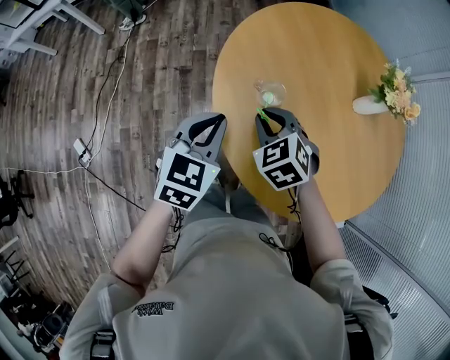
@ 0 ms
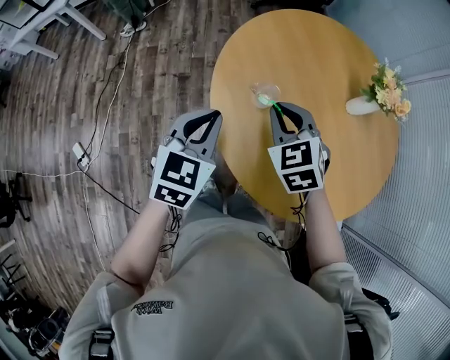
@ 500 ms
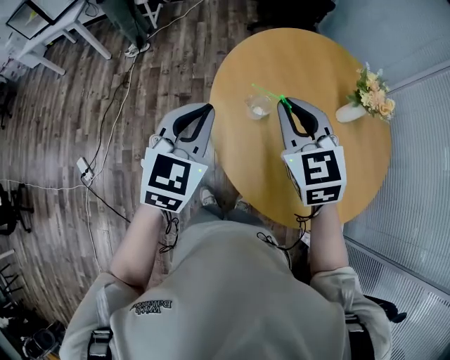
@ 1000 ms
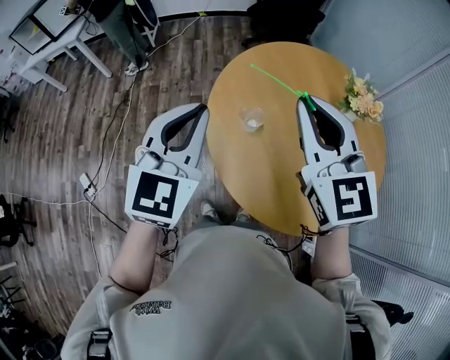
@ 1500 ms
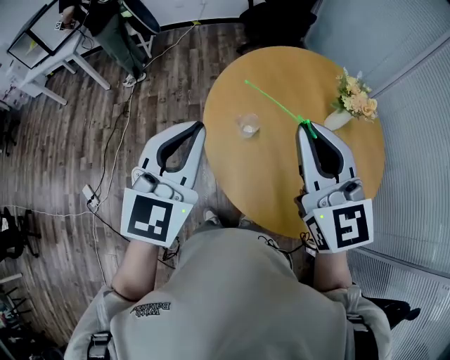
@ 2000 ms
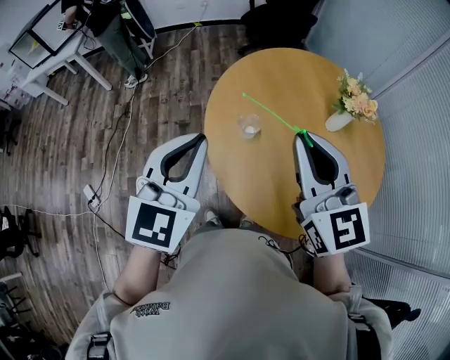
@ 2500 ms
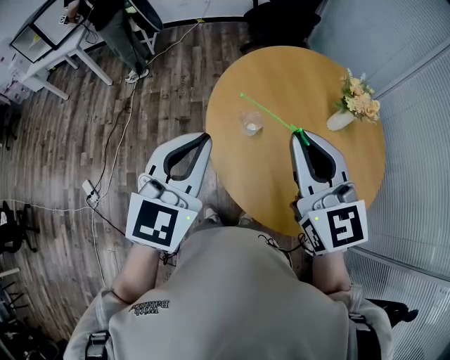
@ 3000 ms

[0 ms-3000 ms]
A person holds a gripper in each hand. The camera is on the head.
0 ms to 1500 ms: The two grippers go approximately 25 cm upward. The right gripper angles its fingers upward, by some 50 degrees, while the left gripper changes its angle by roughly 30 degrees.
1500 ms to 3000 ms: The right gripper ends up approximately 5 cm from where it was.

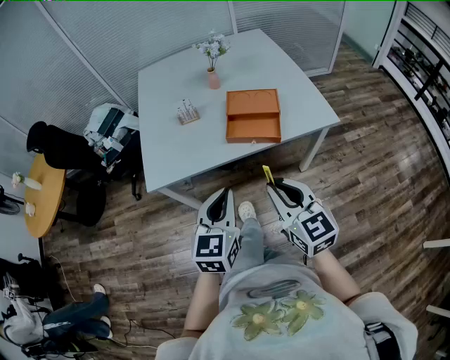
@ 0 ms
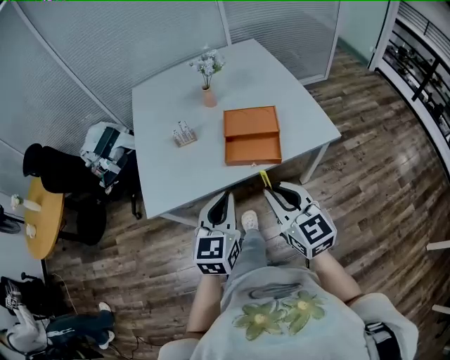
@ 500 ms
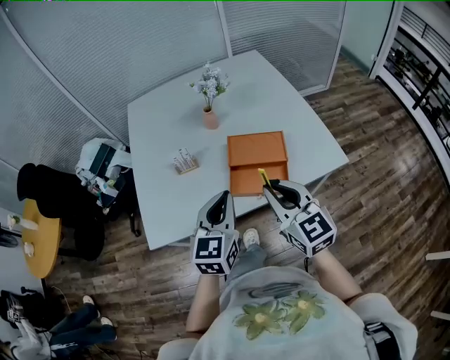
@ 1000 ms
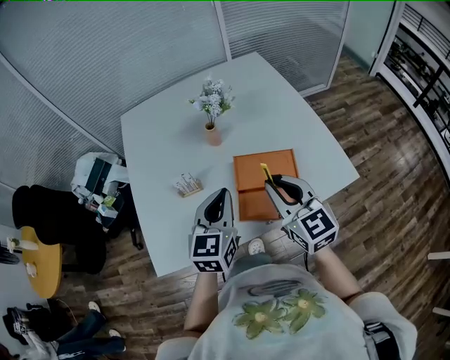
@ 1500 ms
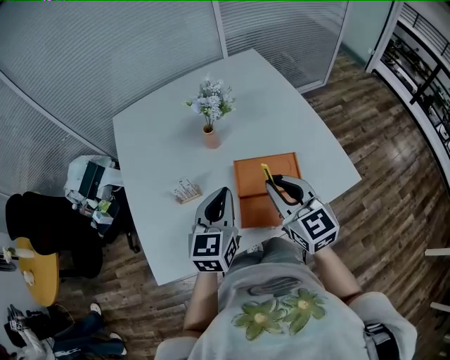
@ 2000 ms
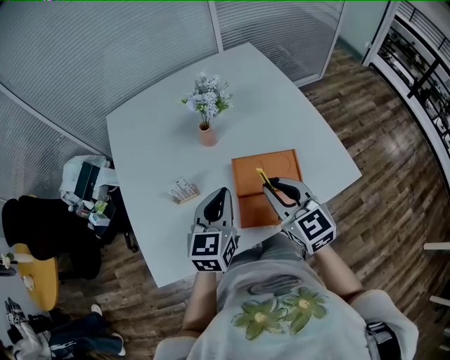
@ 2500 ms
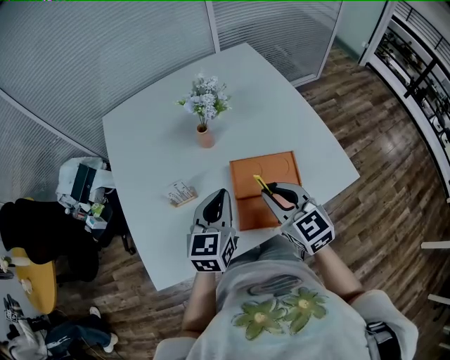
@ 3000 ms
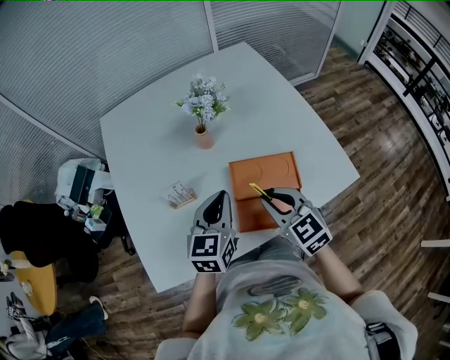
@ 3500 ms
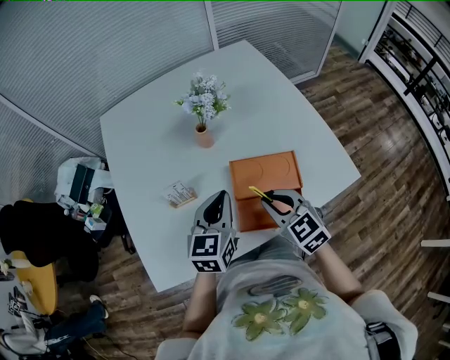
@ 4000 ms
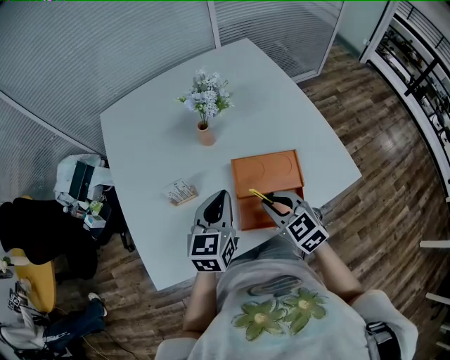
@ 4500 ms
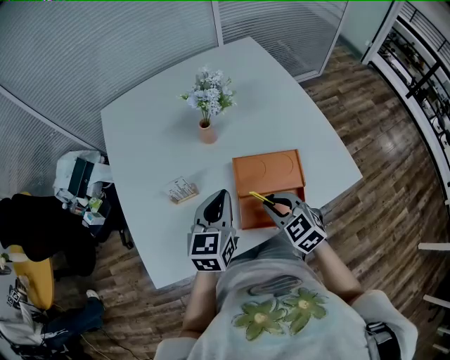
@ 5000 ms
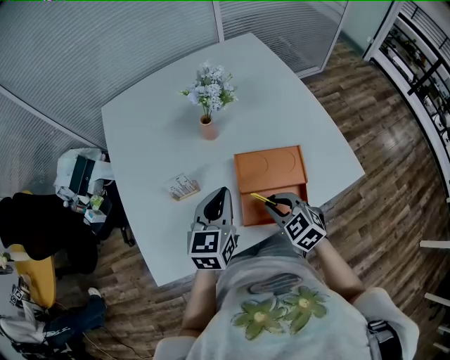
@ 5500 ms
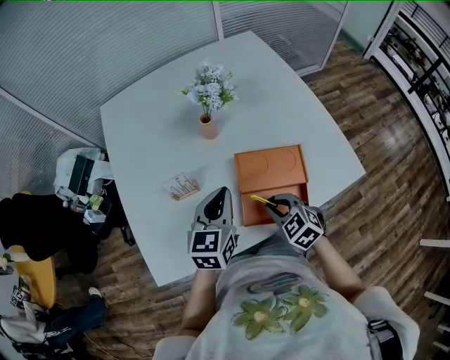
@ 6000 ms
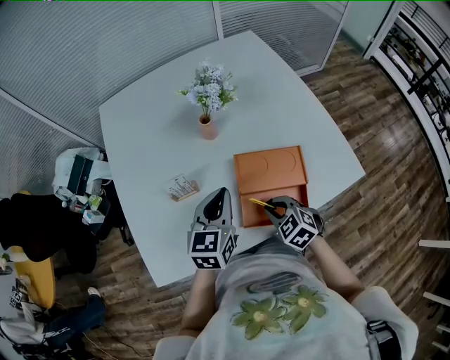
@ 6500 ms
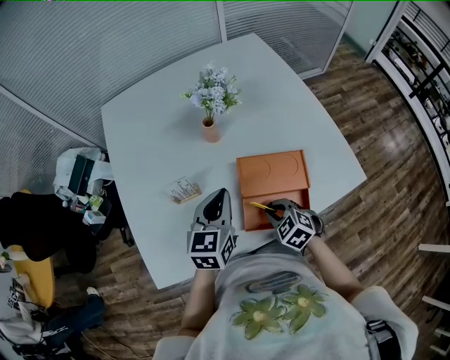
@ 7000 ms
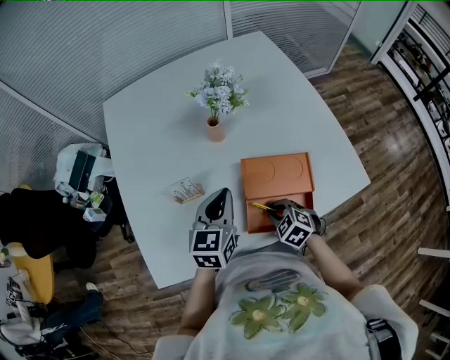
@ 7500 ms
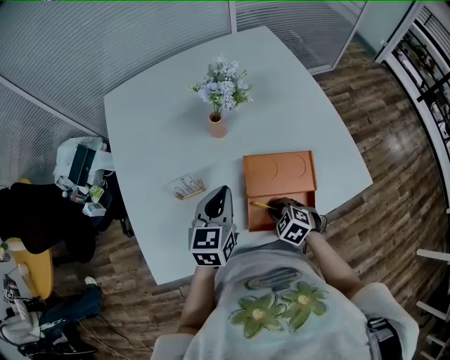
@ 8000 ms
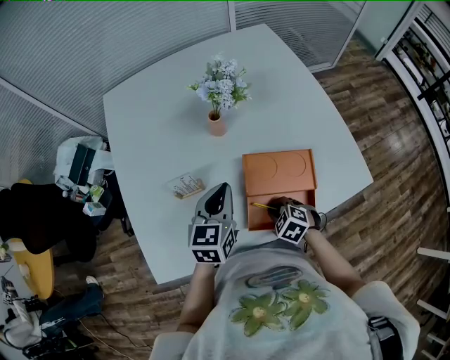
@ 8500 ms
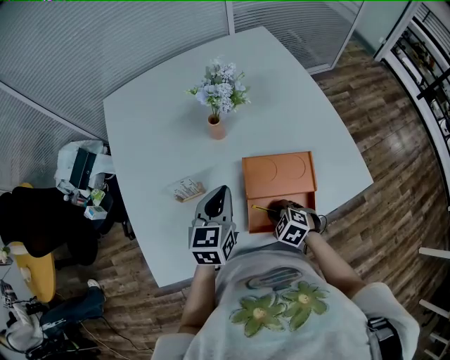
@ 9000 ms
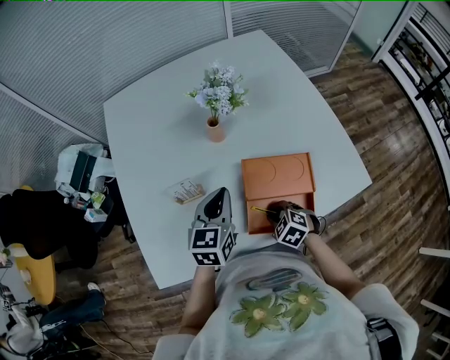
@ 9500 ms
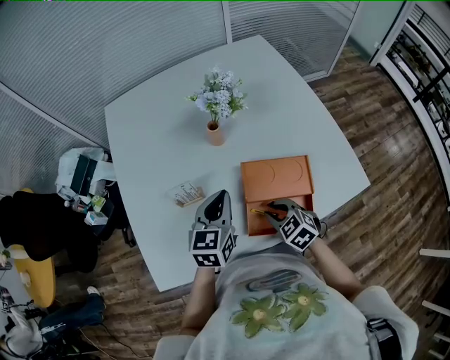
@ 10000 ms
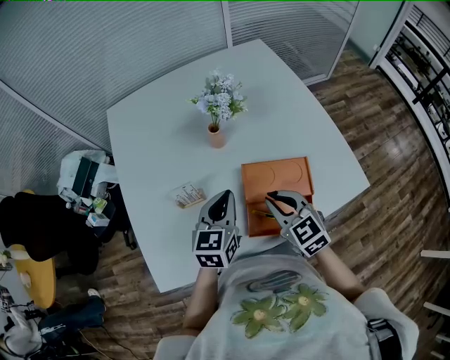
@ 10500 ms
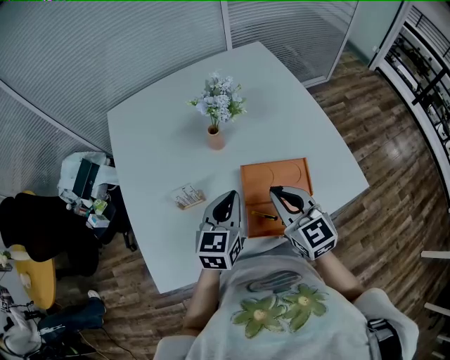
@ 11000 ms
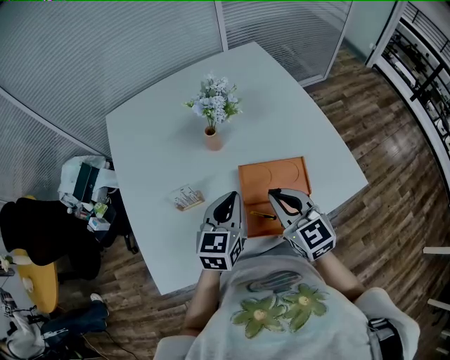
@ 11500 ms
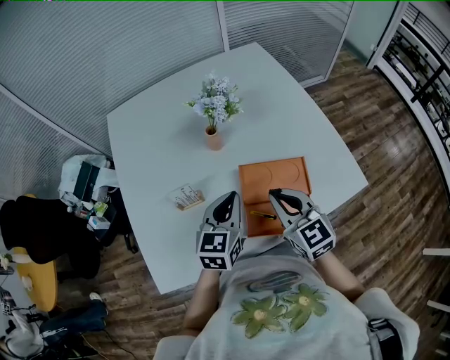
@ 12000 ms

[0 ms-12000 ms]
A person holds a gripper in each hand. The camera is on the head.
0 ms to 2000 ms: Both grippers are carried forward, some 40 cm.
2000 ms to 4000 ms: The left gripper moves roughly 5 cm. Meanwhile the right gripper moves downward, roughly 10 cm, and turns by some 20 degrees.
4000 ms to 6000 ms: The right gripper heads downward, covering about 10 cm.
6000 ms to 8000 ms: The right gripper travels downward by some 10 cm.
8000 ms to 10000 ms: The right gripper is displaced upward by roughly 5 cm.
10000 ms to 12000 ms: The right gripper shifts about 15 cm upward, tips its fingers upward by approximately 30 degrees, and closes up.

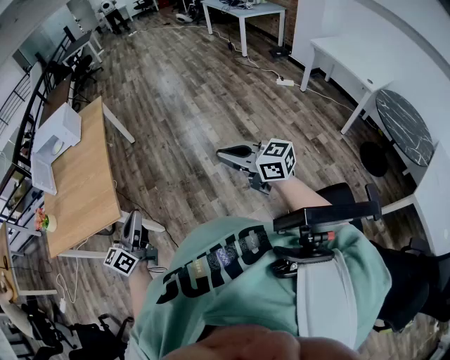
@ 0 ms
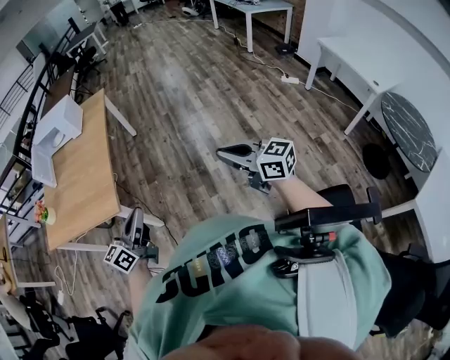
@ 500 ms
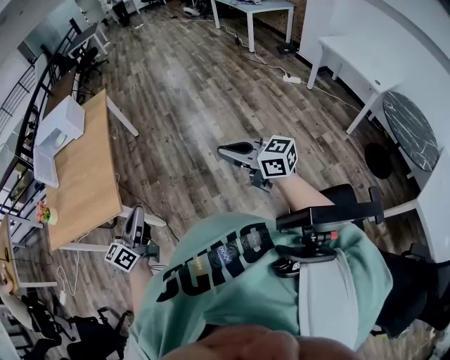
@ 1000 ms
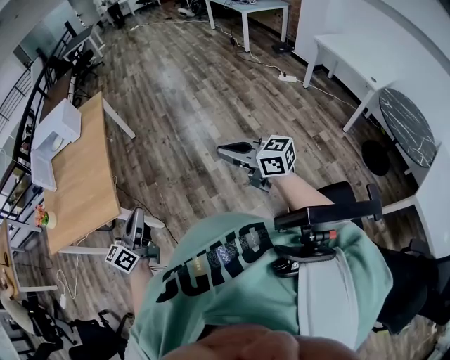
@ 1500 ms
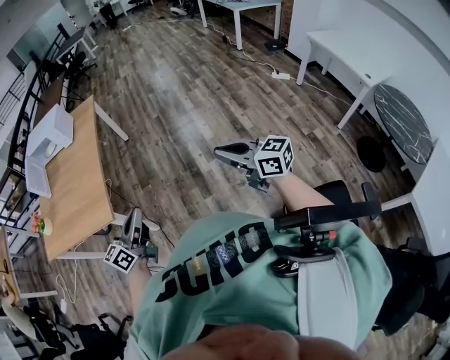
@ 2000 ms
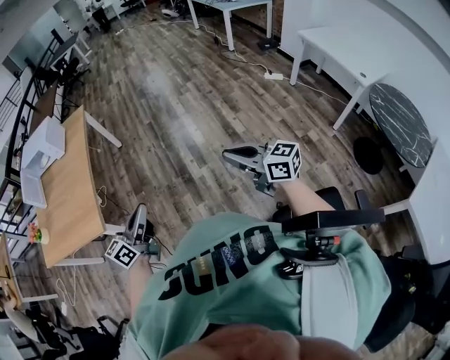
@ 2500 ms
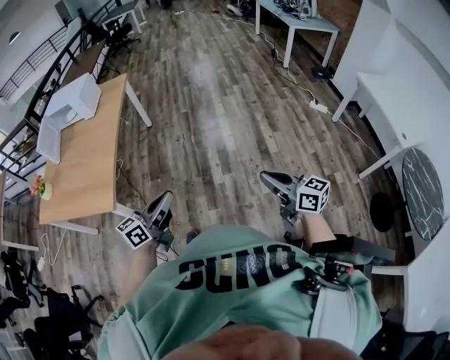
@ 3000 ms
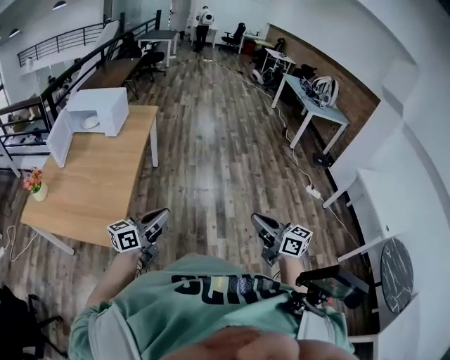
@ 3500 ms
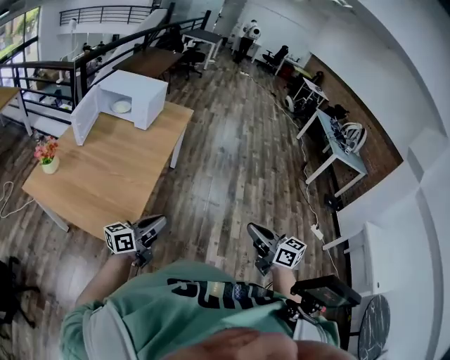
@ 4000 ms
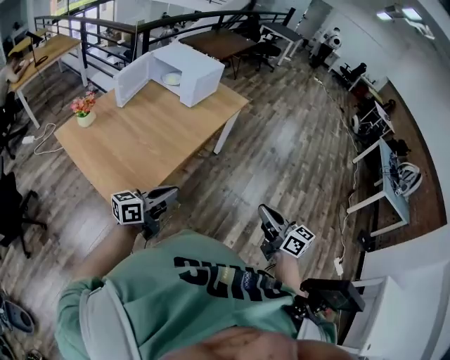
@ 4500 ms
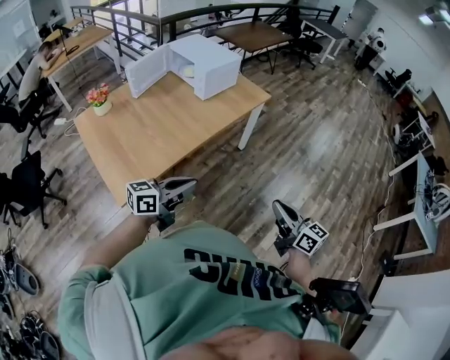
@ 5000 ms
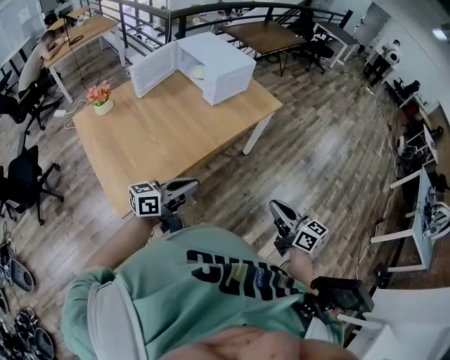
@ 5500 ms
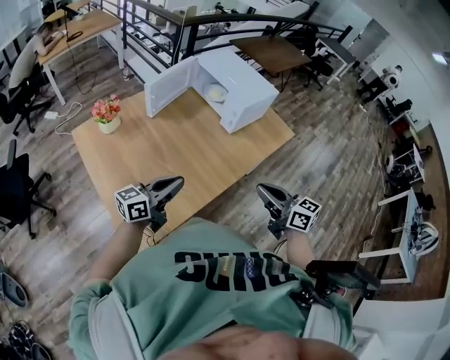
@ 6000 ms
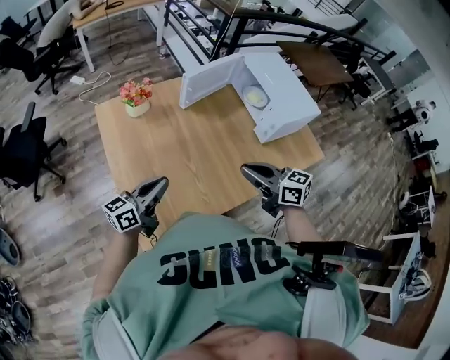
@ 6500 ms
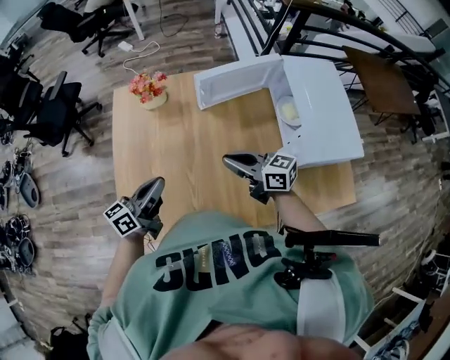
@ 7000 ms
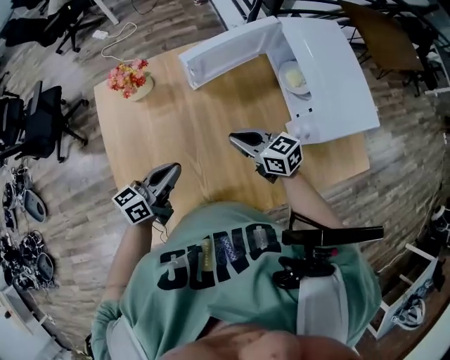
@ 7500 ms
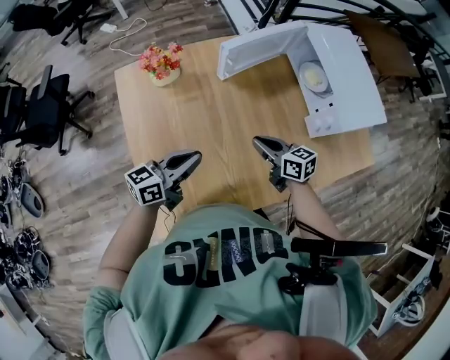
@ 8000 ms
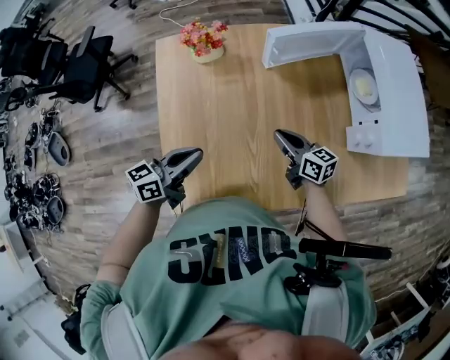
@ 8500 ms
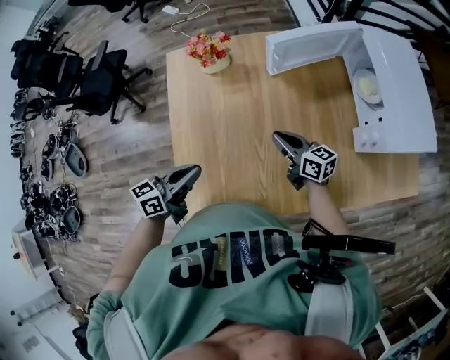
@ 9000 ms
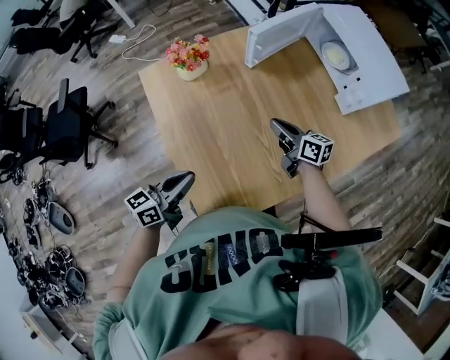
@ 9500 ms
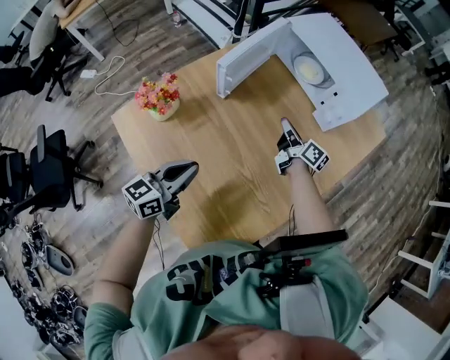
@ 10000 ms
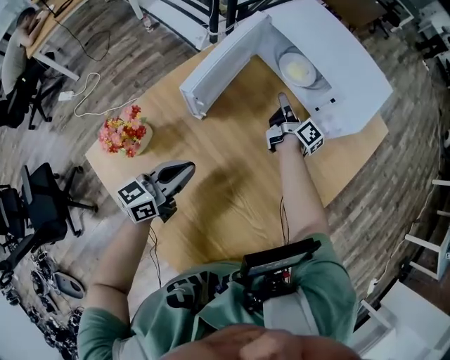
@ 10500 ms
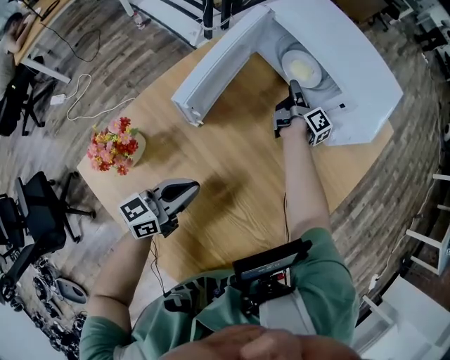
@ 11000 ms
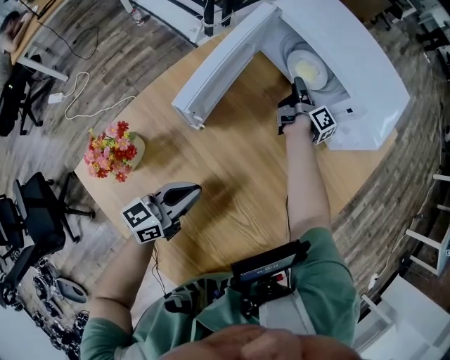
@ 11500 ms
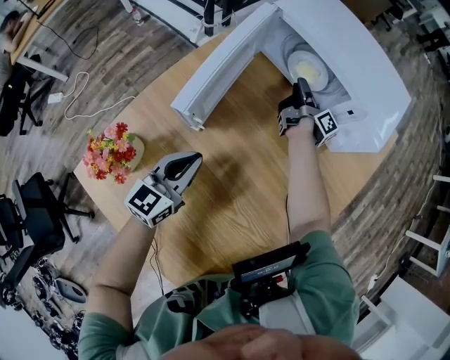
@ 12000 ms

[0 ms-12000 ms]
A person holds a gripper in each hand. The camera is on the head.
0 ms to 2000 ms: The left gripper heads to the right, covering approximately 5 cm.
2000 ms to 4000 ms: Both grippers move forward and to the left, approximately 35 cm.
4000 ms to 6000 ms: The right gripper ends up roughly 50 cm from where it was, and rotates some 40 degrees. The left gripper shifts by about 30 cm, and changes its angle by roughly 30 degrees.
6000 ms to 8000 ms: The right gripper moves some 40 cm, and changes its angle by about 30 degrees; the left gripper moves approximately 20 cm, and changes its angle by roughly 20 degrees.
8000 ms to 10000 ms: The right gripper ends up some 10 cm from where it was, and swivels approximately 60 degrees.
10000 ms to 12000 ms: The right gripper is displaced forward by approximately 25 cm, turns by about 40 degrees, and opens its fingers; the left gripper travels forward and downward by approximately 25 cm.
